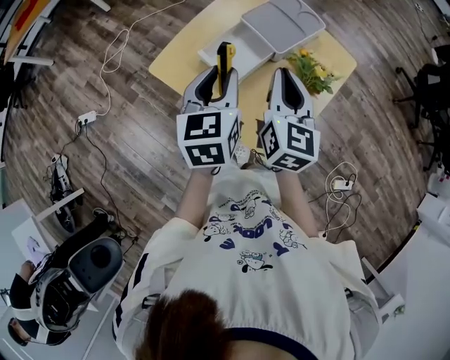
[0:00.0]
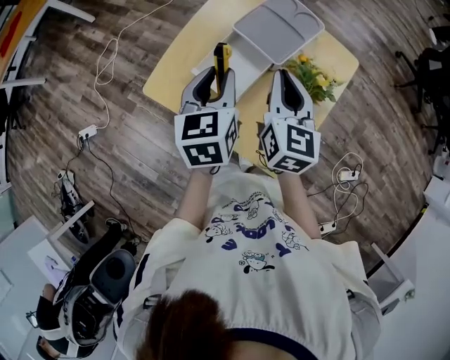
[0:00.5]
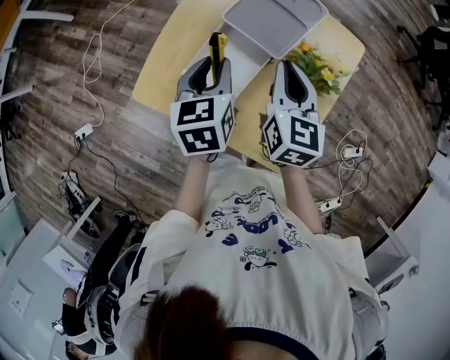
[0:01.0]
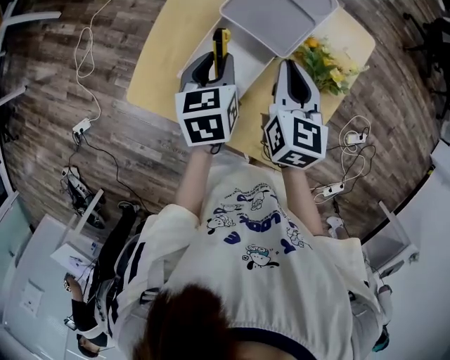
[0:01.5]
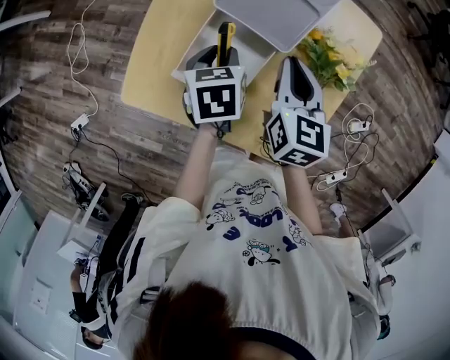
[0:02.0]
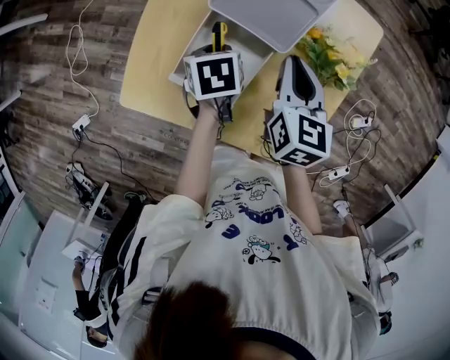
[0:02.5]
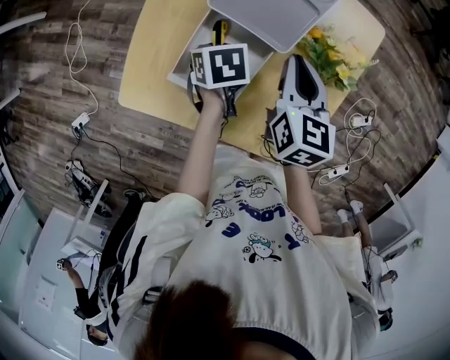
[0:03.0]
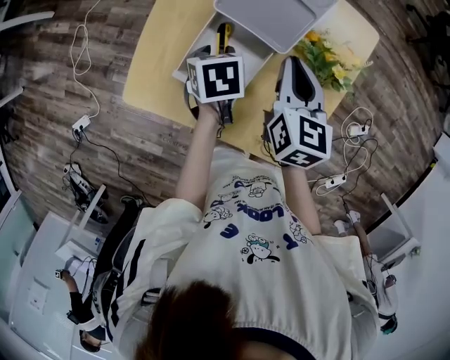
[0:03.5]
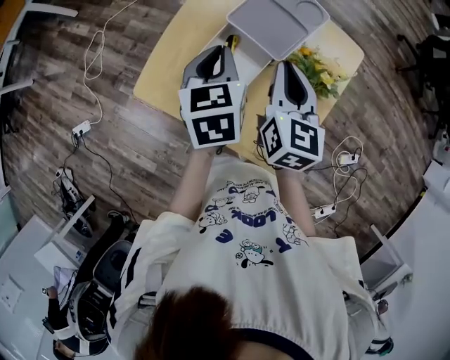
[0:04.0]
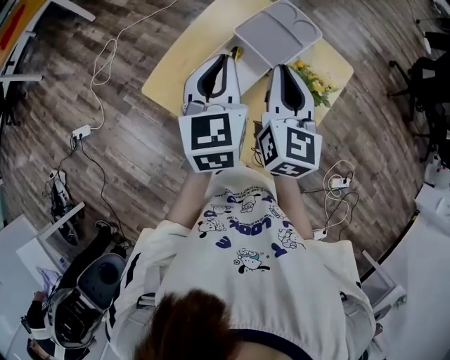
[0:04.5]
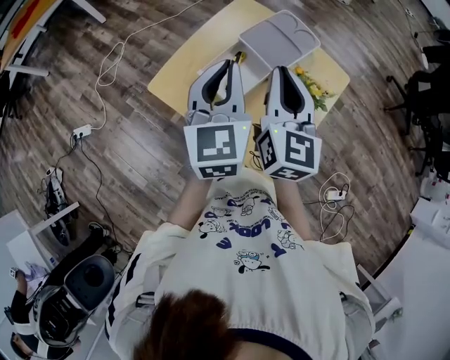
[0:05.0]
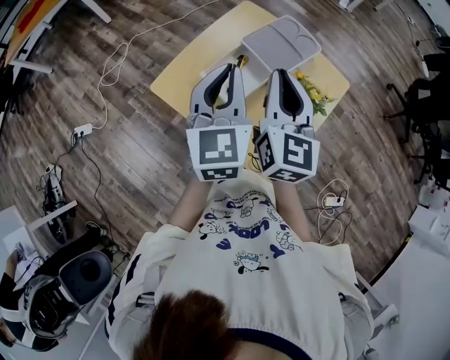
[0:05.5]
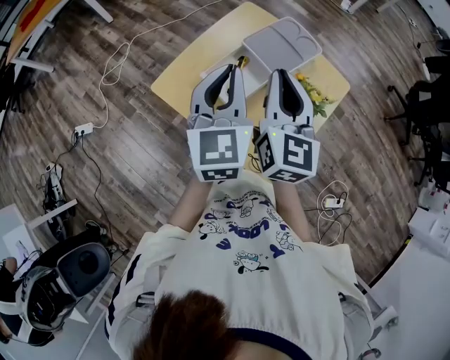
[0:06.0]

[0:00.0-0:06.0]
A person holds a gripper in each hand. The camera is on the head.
0:00.0 to 0:02.0: The two grippers go approximately 20 cm downward and forward. The left gripper angles its fingers downward, by roughly 30 degrees. The right gripper swivels about 30 degrees.
0:02.0 to 0:04.0: The right gripper is displaced upward by approximately 10 cm, while the left gripper moves upward, approximately 15 cm, swivels roughly 20 degrees, and closes its fingers.
0:04.0 to 0:06.0: The left gripper travels upward and backward by some 15 cm, and rotates some 30 degrees, while the right gripper heads upward, to the left and backward, covering about 15 cm, and rotates approximately 20 degrees.

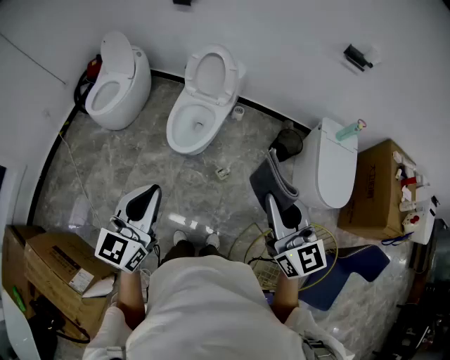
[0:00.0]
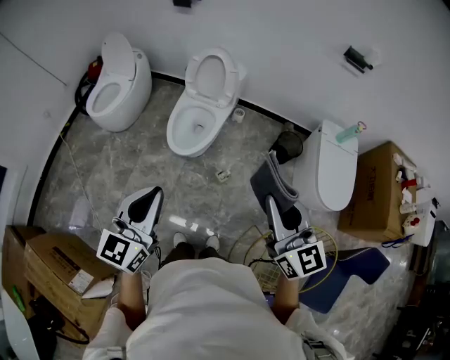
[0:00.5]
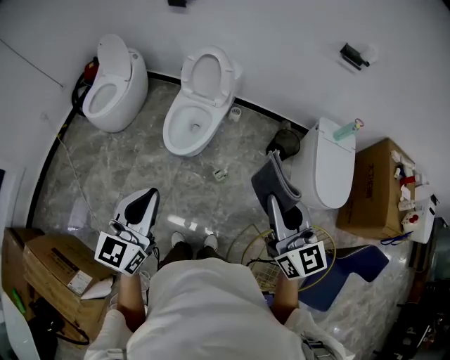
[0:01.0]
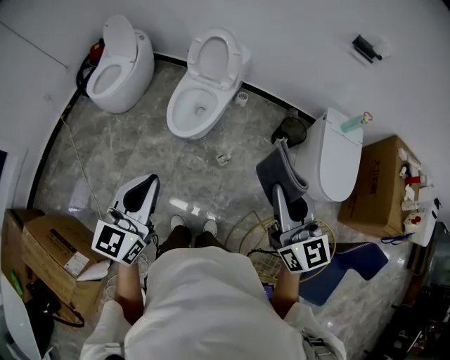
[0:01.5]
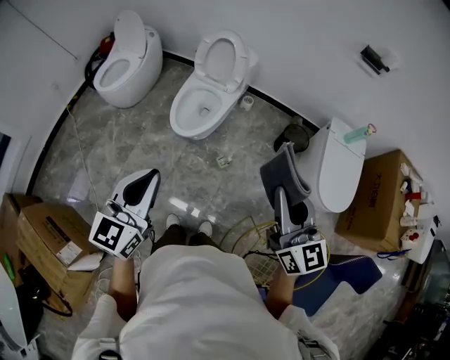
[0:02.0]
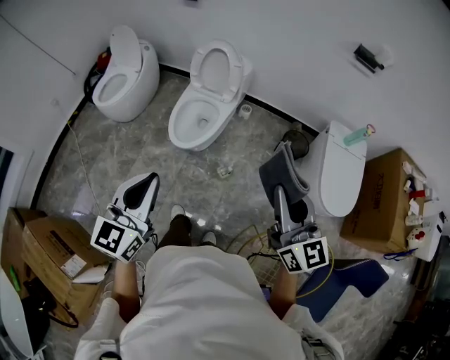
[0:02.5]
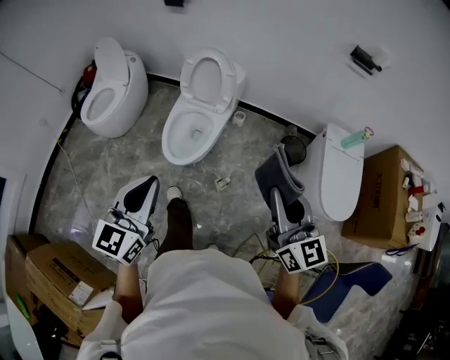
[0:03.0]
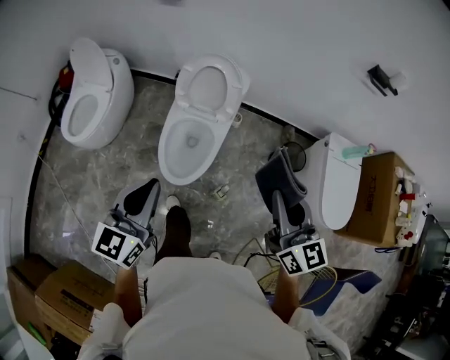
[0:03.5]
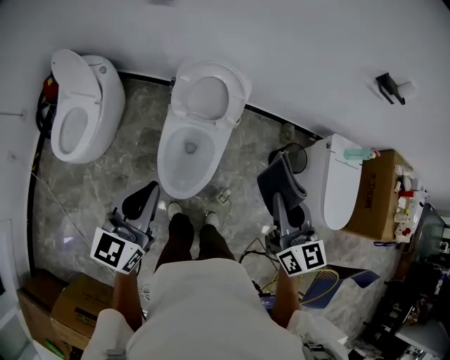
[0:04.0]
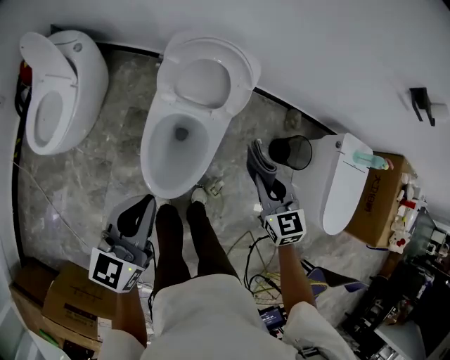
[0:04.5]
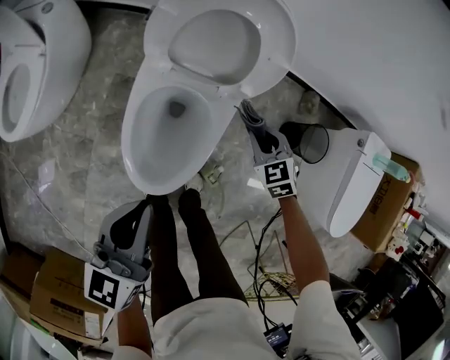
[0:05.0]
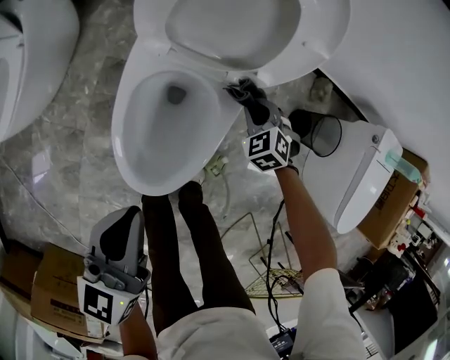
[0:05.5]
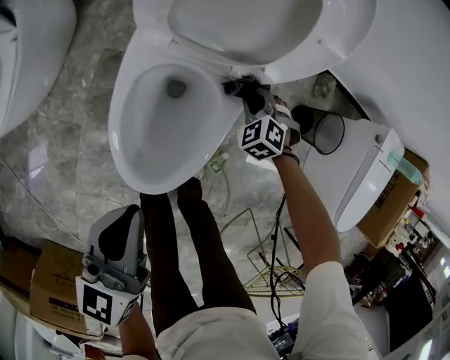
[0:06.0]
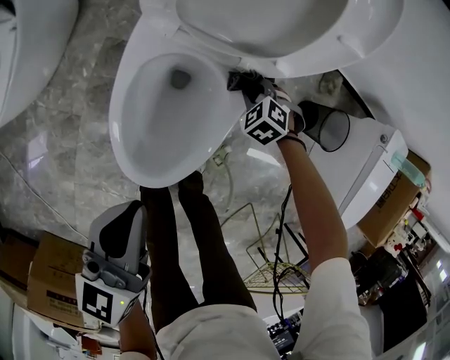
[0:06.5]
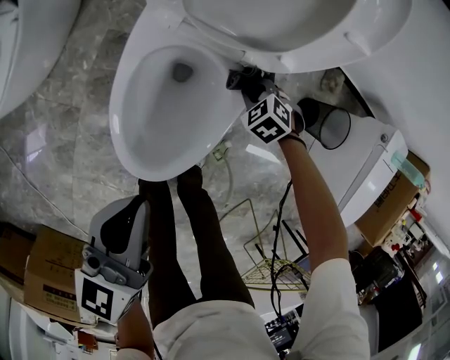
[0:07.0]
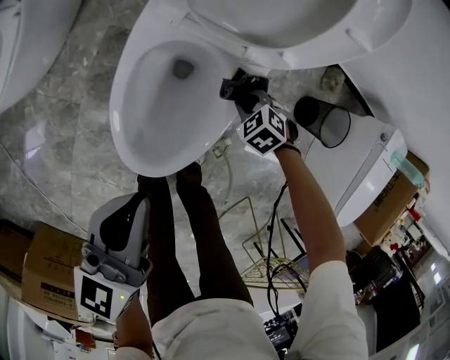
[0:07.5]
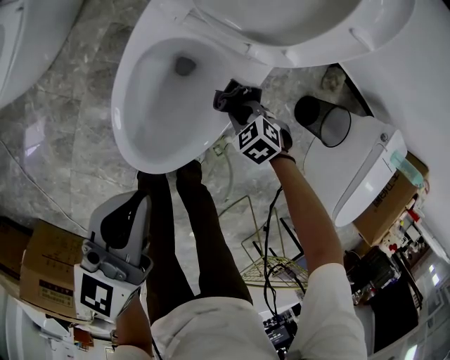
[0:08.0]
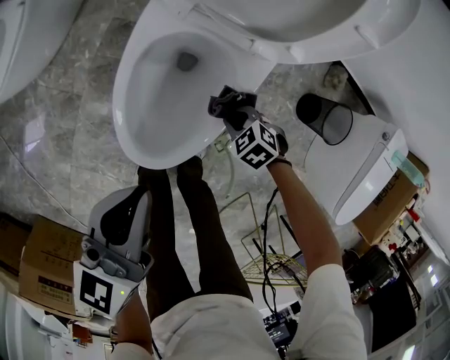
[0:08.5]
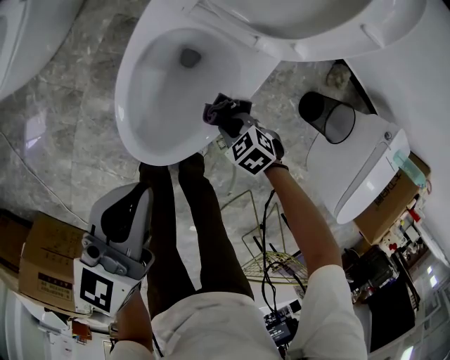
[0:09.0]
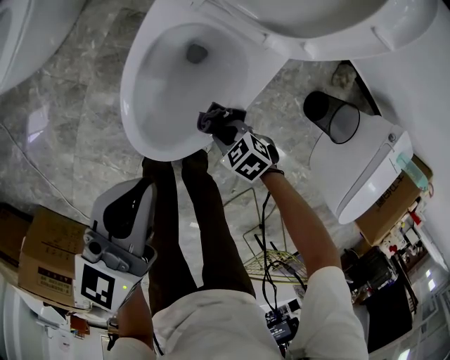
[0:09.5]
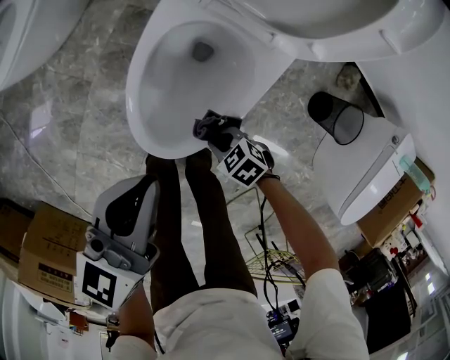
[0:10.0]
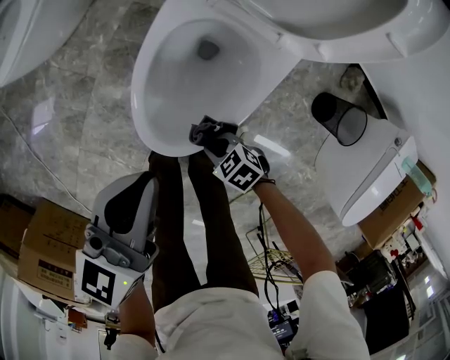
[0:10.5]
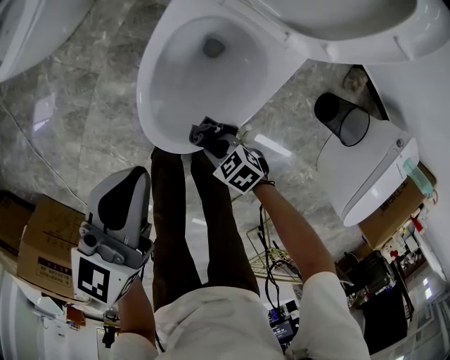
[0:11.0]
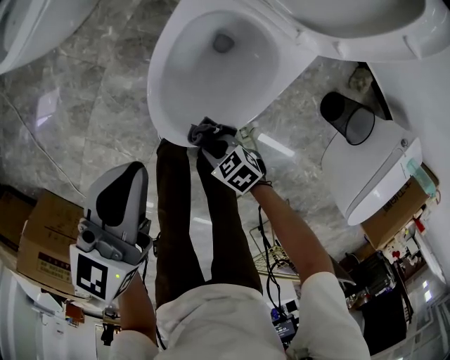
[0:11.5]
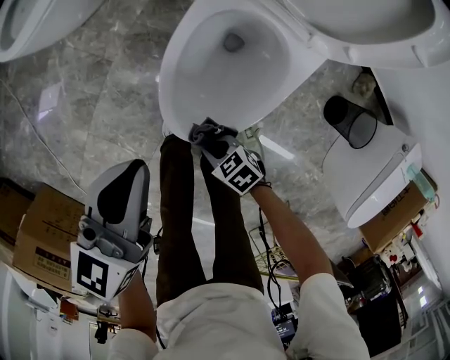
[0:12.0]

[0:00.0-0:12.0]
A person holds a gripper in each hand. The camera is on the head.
0:00.0 to 0:02.0: The right gripper heads to the right, covering some 5 cm.
0:02.0 to 0:04.0: Both grippers are carried forward and to the left, about 50 cm. The right gripper changes its angle by about 20 degrees.
0:04.0 to 0:06.0: The right gripper goes roughly 70 cm downward and forward, and points its fingers some 50 degrees further downward; the left gripper shifts about 35 cm downward, and rotates some 20 degrees.
0:06.0 to 0:08.0: The right gripper ends up roughly 15 cm from where it was, and turns by roughly 30 degrees.
0:08.0 to 0:10.0: The right gripper ends up approximately 15 cm from where it was, and rotates some 20 degrees.
0:10.0 to 0:12.0: The left gripper changes place by roughly 10 cm, while the right gripper changes place by about 10 cm.

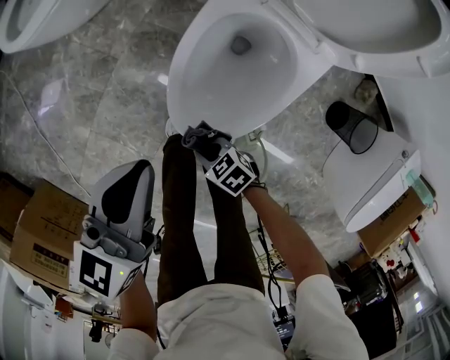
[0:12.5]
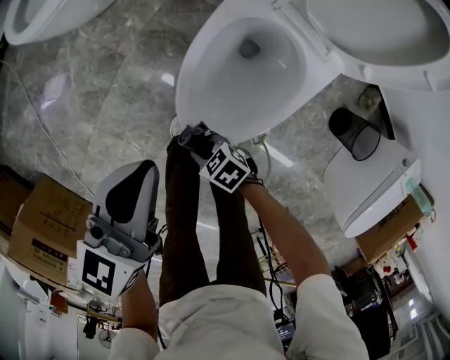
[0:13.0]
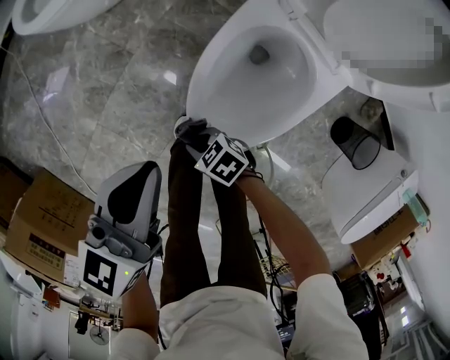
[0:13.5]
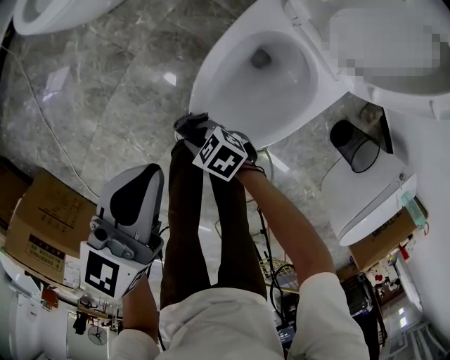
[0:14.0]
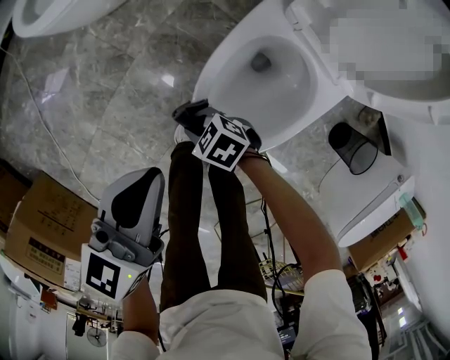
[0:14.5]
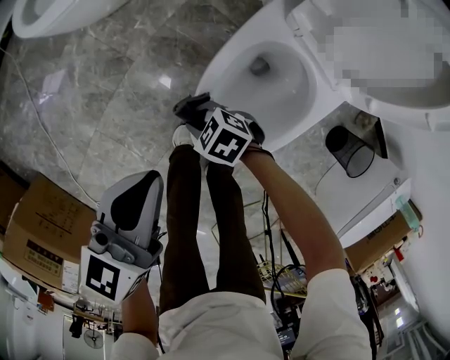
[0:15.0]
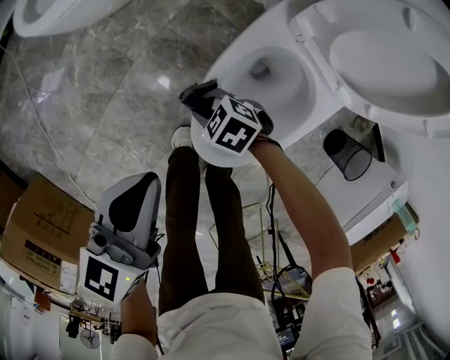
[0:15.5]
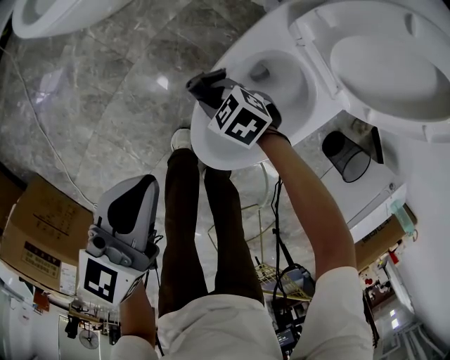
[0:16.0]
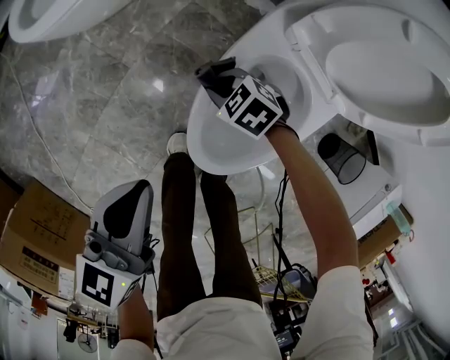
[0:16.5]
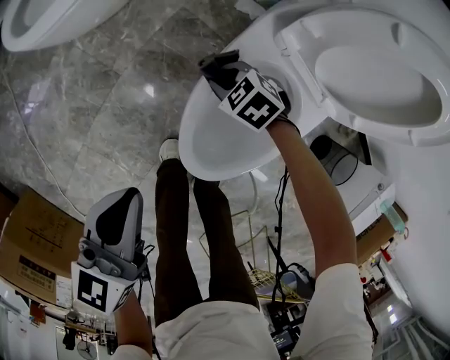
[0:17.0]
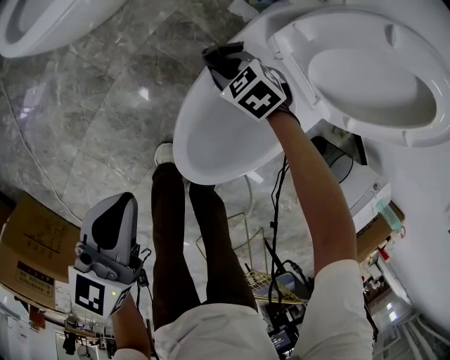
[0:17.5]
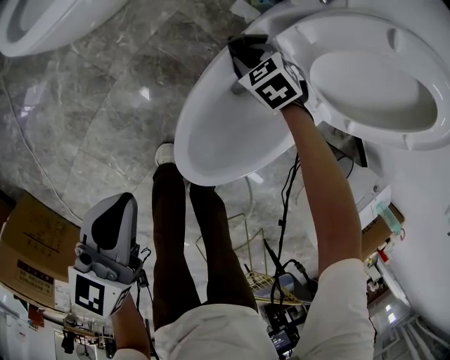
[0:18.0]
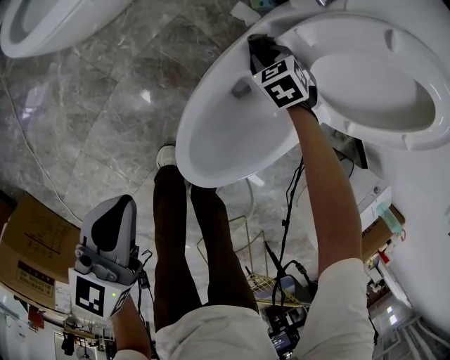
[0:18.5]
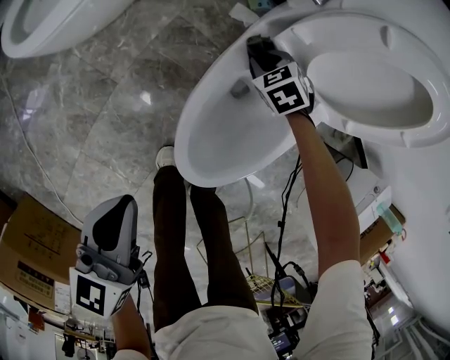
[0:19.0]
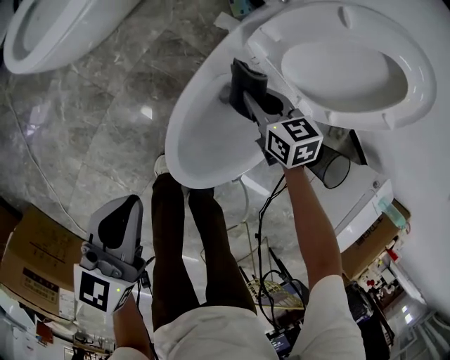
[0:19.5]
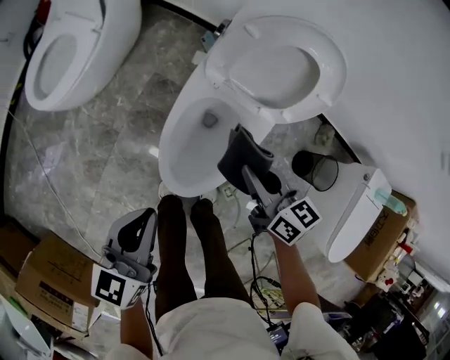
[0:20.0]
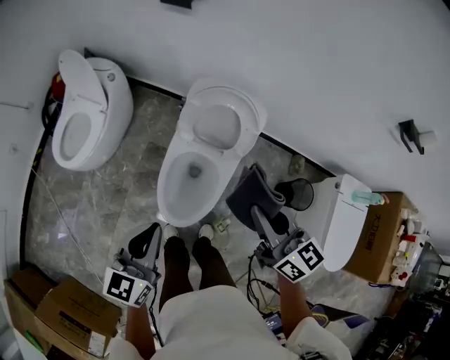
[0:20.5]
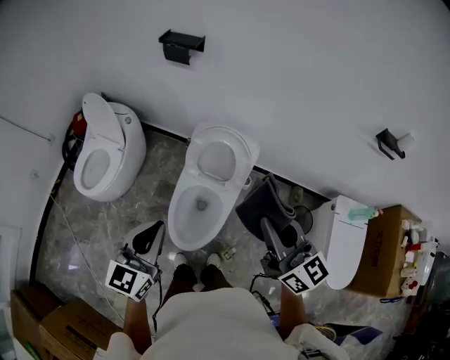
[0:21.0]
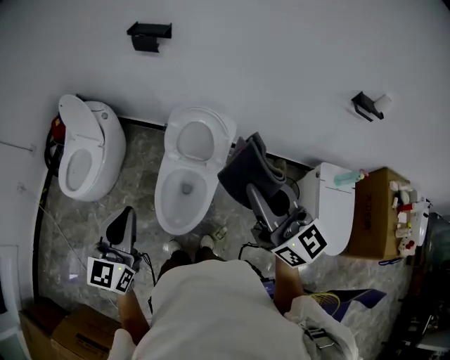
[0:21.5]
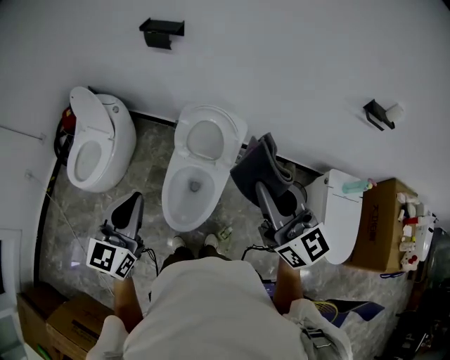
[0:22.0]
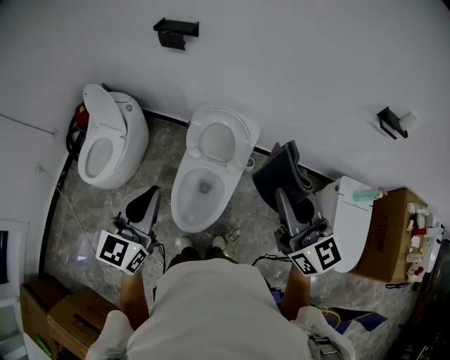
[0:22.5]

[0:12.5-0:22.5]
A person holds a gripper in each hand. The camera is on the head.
0:12.5 to 0:14.5: The right gripper ends up approximately 15 cm from where it was. Meanwhile the left gripper moves roughly 5 cm.
0:14.5 to 0:16.5: The right gripper changes place by roughly 15 cm.
0:16.5 to 0:18.5: The right gripper shifts by about 20 cm, and rotates some 30 degrees.
0:18.5 to 0:20.5: The left gripper moves upward and to the right, roughly 40 cm, and turns by about 20 degrees. The right gripper heads upward and backward, covering approximately 70 cm, and angles its fingers upward, by approximately 60 degrees.
0:20.5 to 0:22.5: Both grippers move upward, about 20 cm. The right gripper turns by some 30 degrees.
